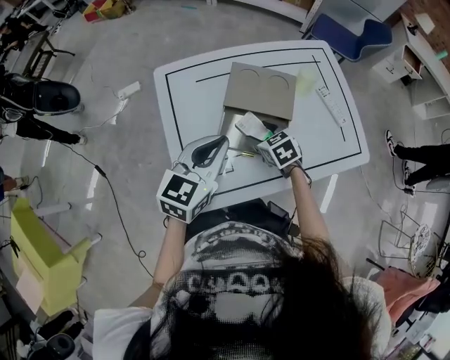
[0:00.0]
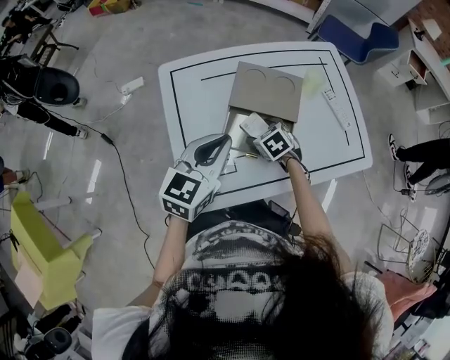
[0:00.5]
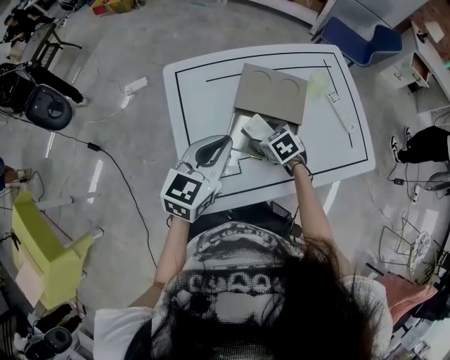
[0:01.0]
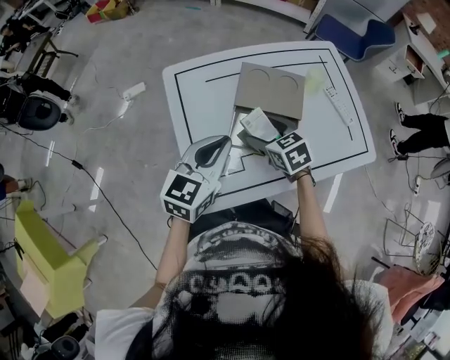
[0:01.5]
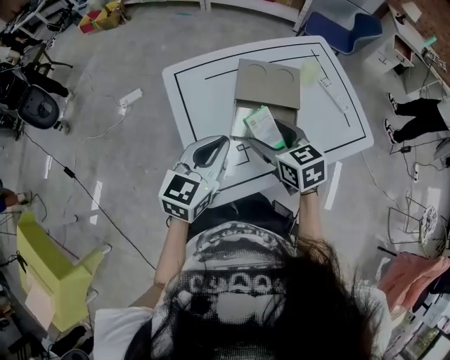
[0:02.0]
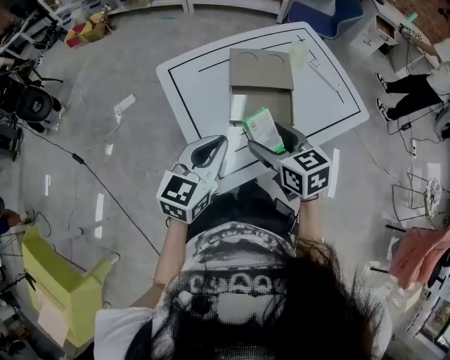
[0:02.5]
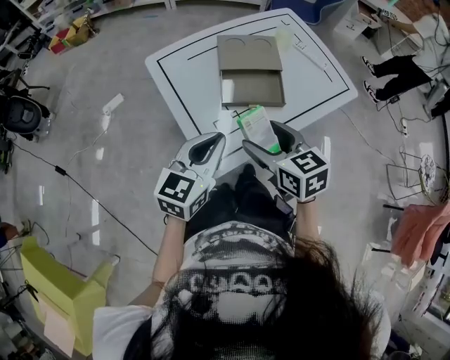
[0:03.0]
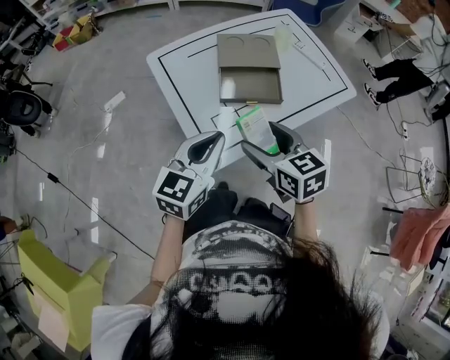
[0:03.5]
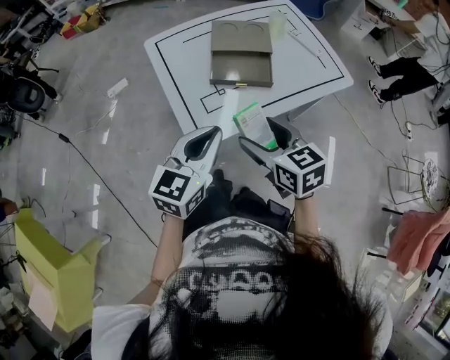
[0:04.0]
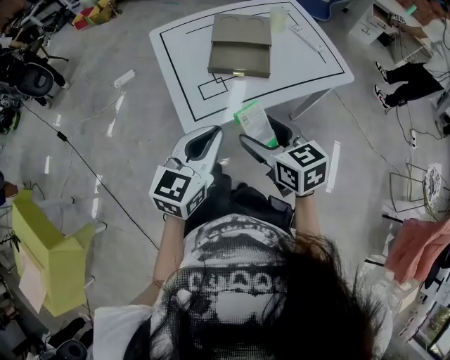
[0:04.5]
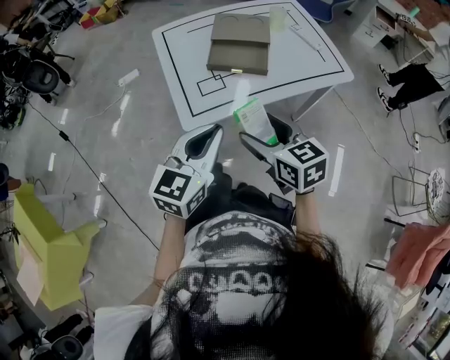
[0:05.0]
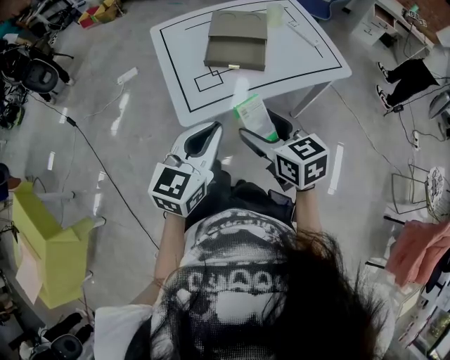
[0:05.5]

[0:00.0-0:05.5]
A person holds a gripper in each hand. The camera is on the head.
0:00.0 to 0:02.0: The left gripper is displaced to the left by about 5 cm. Meanwhile the right gripper travels upward, backward and to the left by about 15 cm, and rotates about 20 degrees.
0:02.0 to 0:03.5: Both grippers travel together backward, roughly 15 cm.
0:03.5 to 0:05.5: Both grippers travel together backward and to the right, about 20 cm.

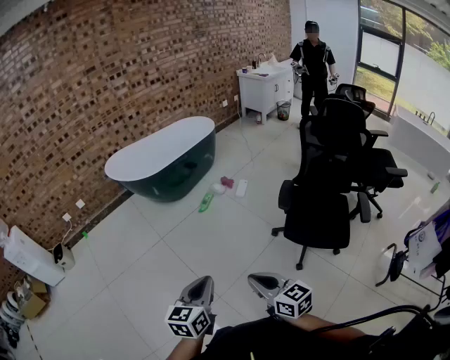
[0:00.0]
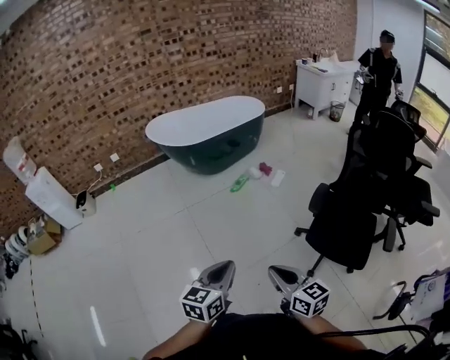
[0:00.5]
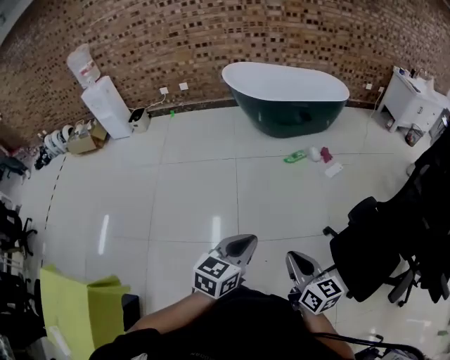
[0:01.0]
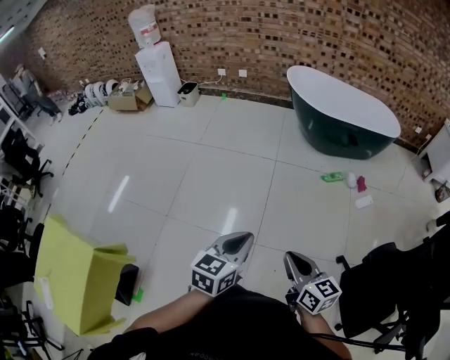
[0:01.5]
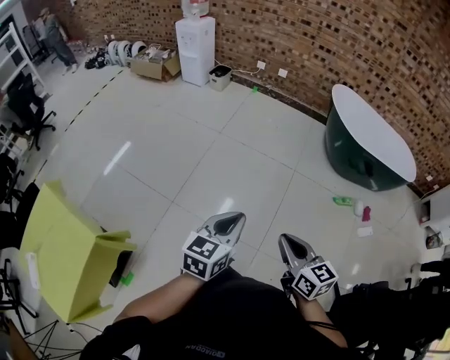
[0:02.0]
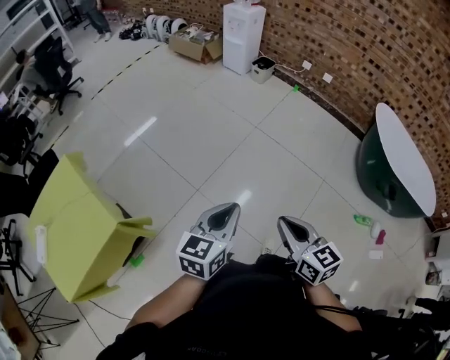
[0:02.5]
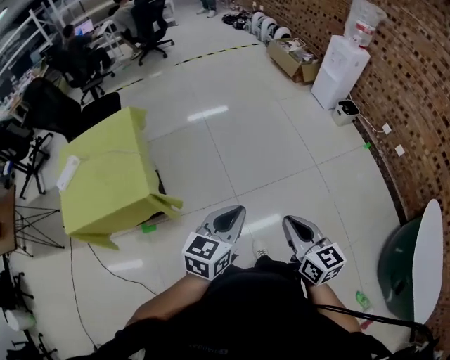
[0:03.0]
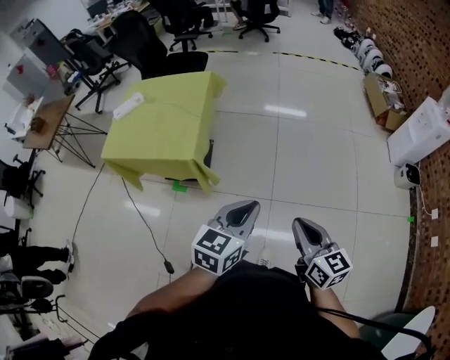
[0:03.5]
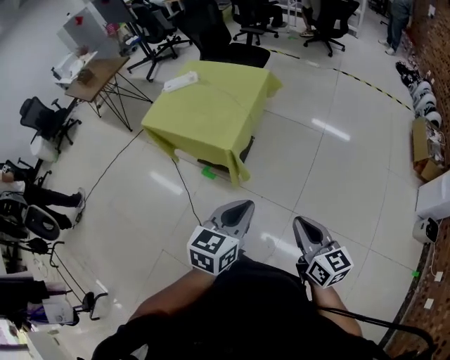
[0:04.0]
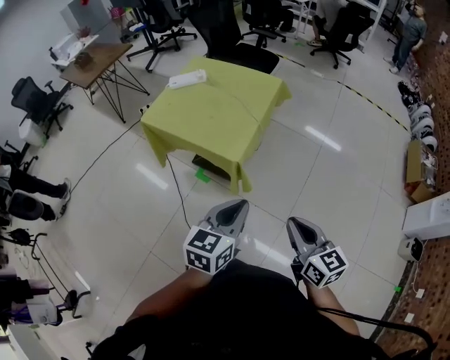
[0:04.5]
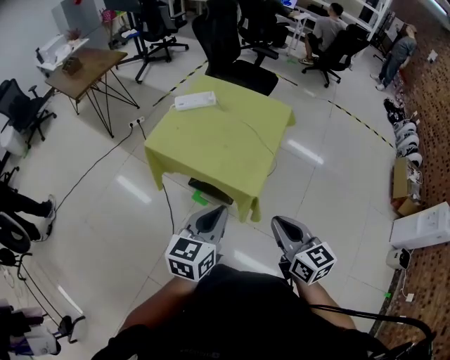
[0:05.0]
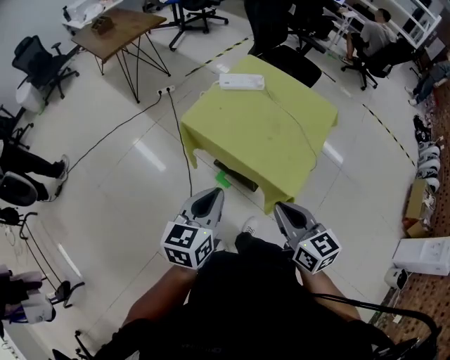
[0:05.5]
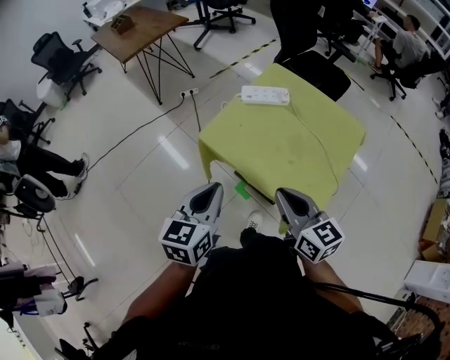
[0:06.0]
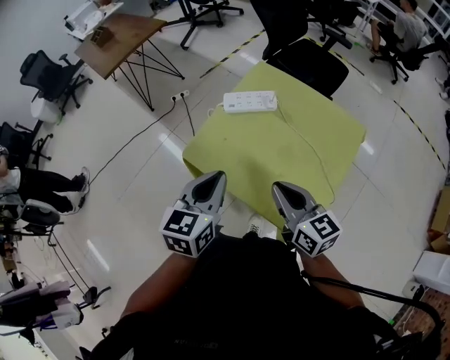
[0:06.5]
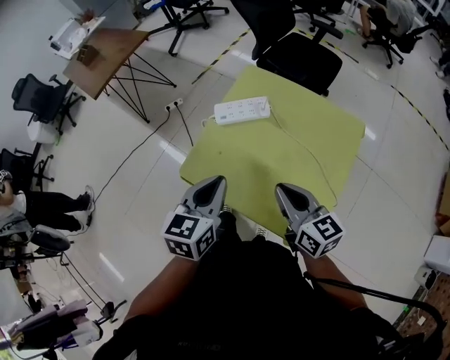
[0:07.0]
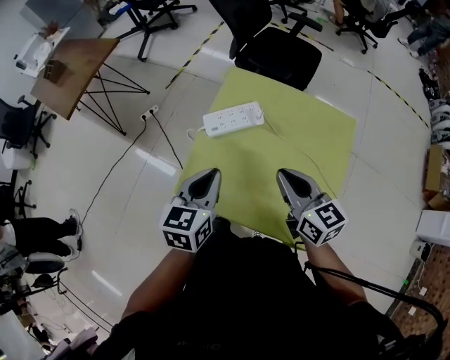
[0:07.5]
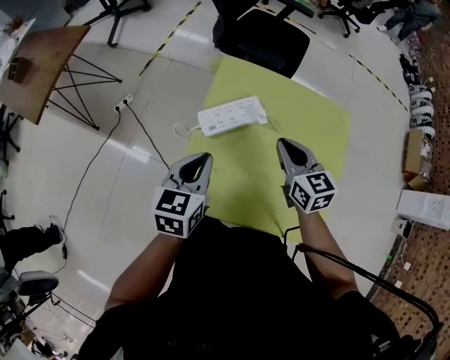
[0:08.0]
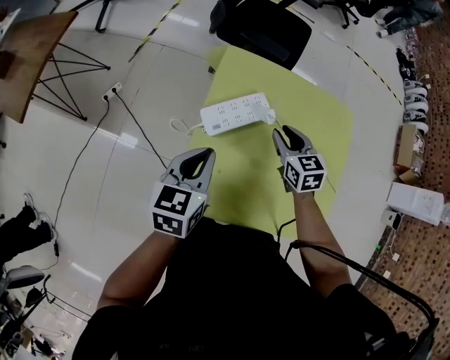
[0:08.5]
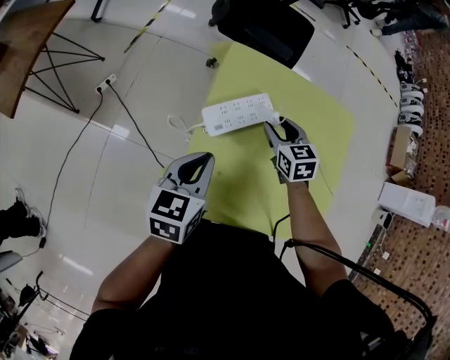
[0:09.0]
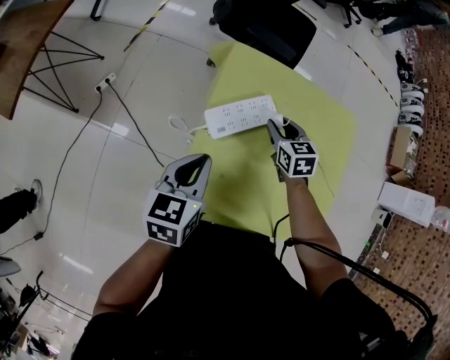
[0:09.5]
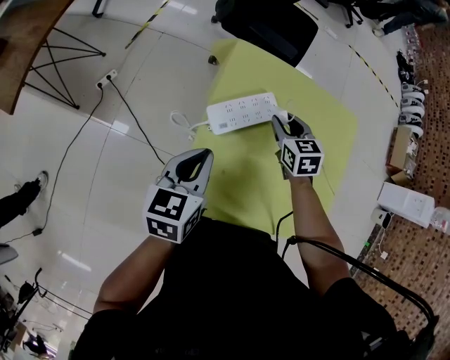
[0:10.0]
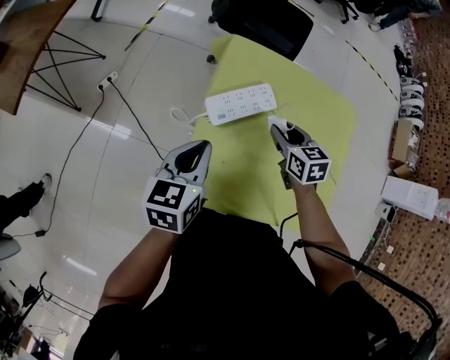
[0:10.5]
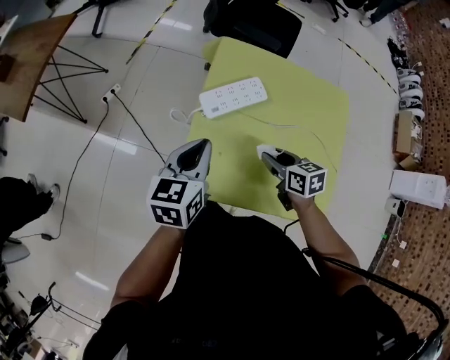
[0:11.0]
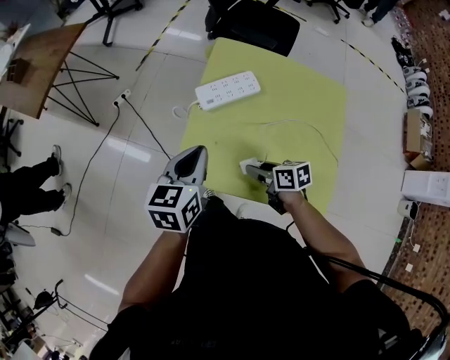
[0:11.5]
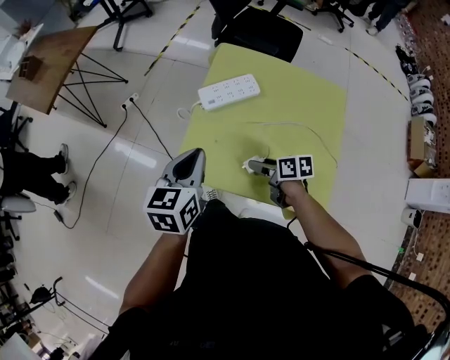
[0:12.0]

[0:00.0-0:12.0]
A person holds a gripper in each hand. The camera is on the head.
0:00.0 to 0:02.0: The right gripper ends up some 30 cm from where it was, and rotates about 50 degrees, while the left gripper shifts by about 30 cm, and swivels some 50 degrees.
0:02.0 to 0:04.0: The left gripper moves some 35 cm, and changes its angle by about 90 degrees. Meanwhile the right gripper changes place by some 50 cm, and changes its angle by roughly 90 degrees.
0:04.0 to 0:06.0: Both grippers are carried to the left and forward, some 60 cm. The left gripper changes its angle by some 30 degrees; the right gripper rotates about 20 degrees.
0:06.0 to 0:08.0: The right gripper moves roughly 35 cm, and turns by some 30 degrees. Meanwhile the left gripper moves about 35 cm, and swivels some 30 degrees.
0:08.0 to 0:10.0: The left gripper shifts by approximately 5 cm. The right gripper is displaced downward and forward by some 15 cm, turns by approximately 20 degrees, and opens its fingers.
0:10.0 to 0:12.0: The right gripper moves some 25 cm, rotates approximately 50 degrees, and opens. The left gripper shifts by roughly 15 cm.

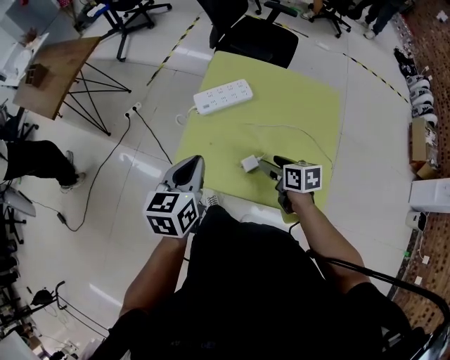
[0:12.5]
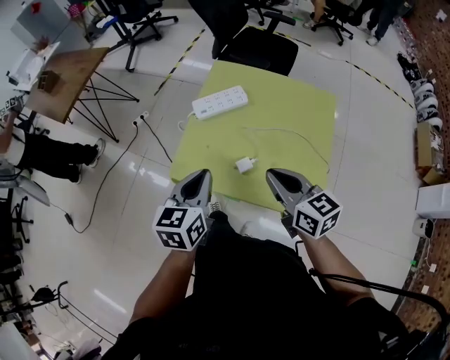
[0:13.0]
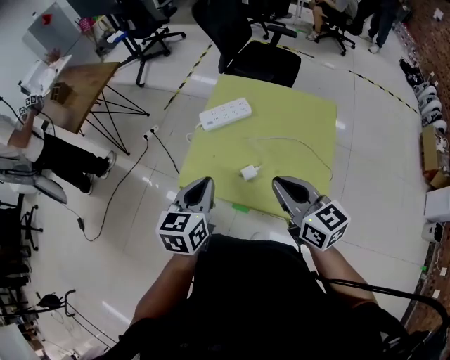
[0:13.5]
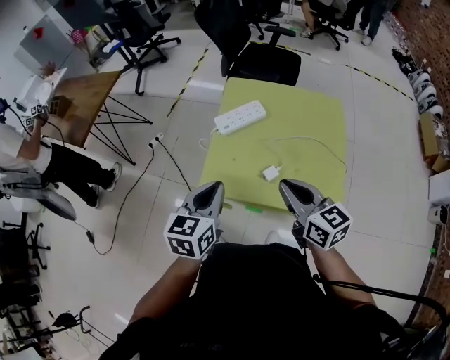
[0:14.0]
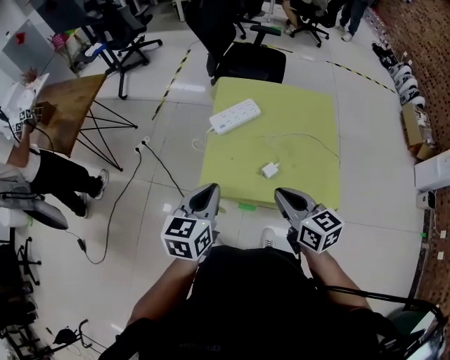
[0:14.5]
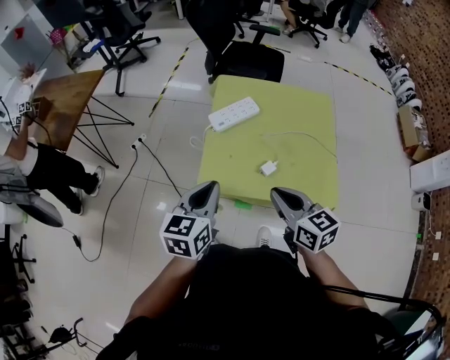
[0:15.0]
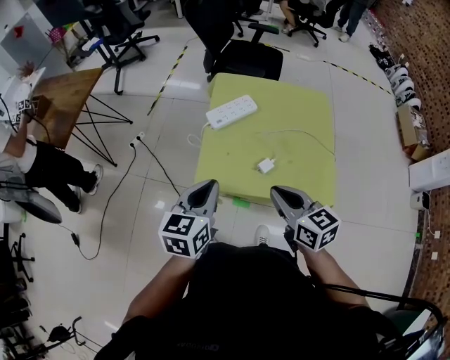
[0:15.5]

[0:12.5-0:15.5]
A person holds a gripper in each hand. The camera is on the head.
0:12.5 to 0:14.0: The left gripper shifts some 5 cm backward, while the right gripper moves upward, roughly 20 cm, swivels about 30 degrees, and closes.
0:14.0 to 0:15.5: The right gripper moves roughly 5 cm.

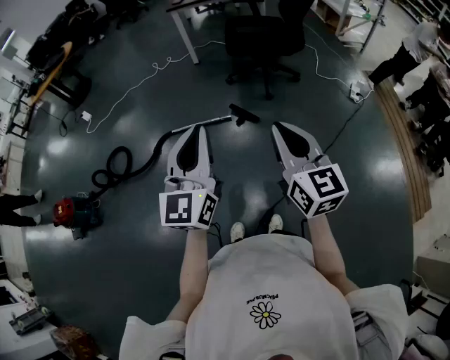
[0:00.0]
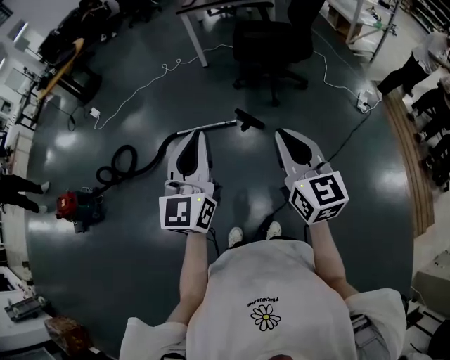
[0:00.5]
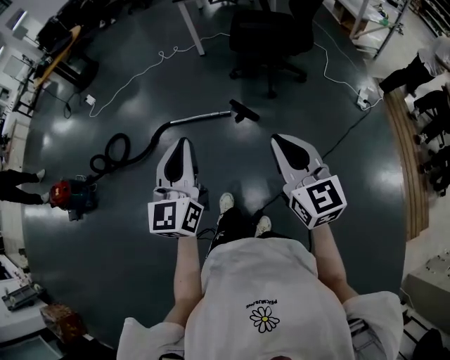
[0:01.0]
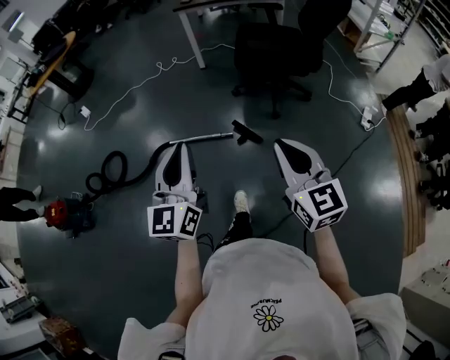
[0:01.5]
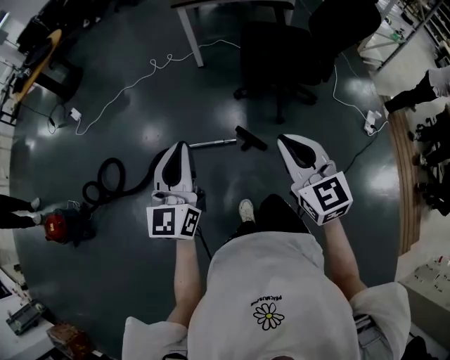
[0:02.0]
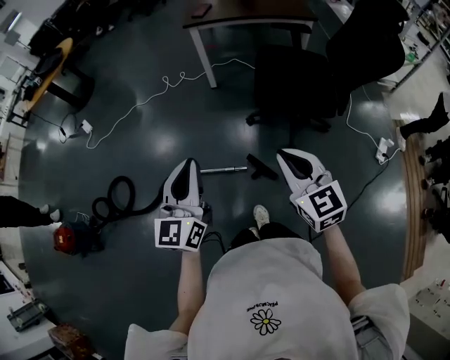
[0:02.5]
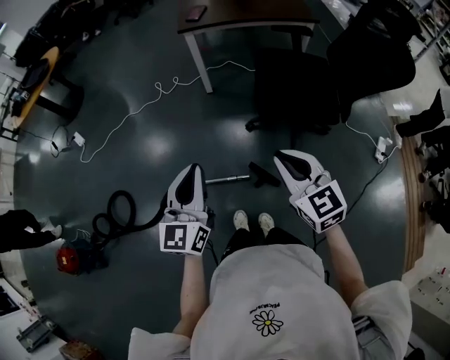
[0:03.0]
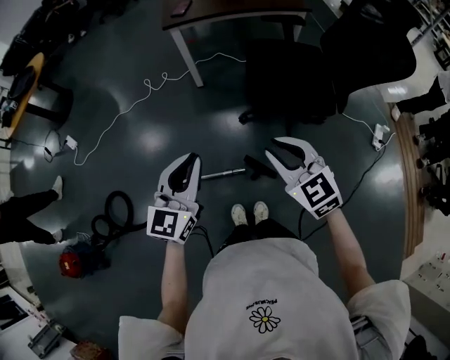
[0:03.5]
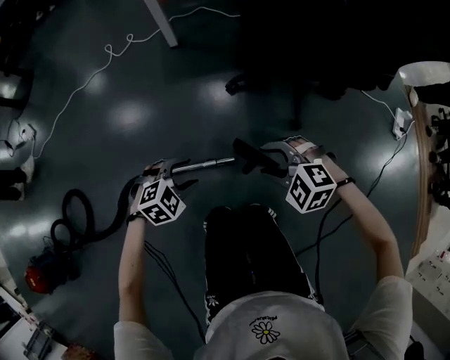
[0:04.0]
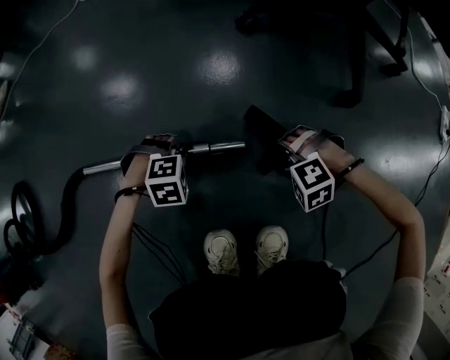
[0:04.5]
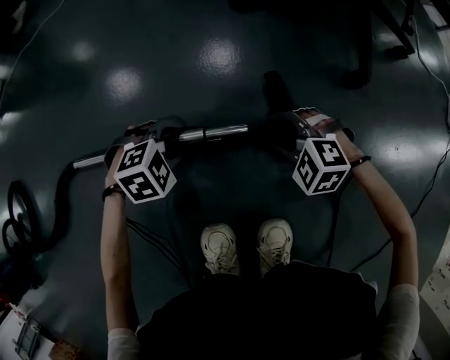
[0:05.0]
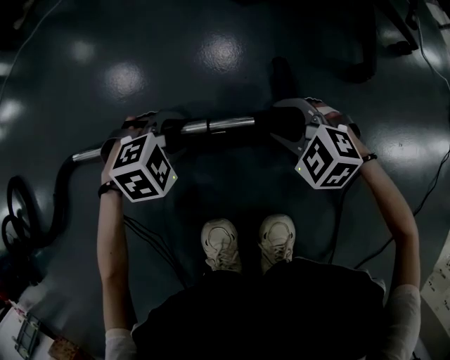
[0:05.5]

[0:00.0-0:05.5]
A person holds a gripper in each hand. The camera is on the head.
0:00.0 to 0:02.0: The grippers both shift forward by some 35 cm. The right gripper changes its angle by some 20 degrees.
0:02.0 to 0:03.5: Both grippers travel together forward, approximately 25 cm. The left gripper changes its angle by approximately 20 degrees.
0:03.5 to 0:05.5: The two grippers go approximately 90 cm downward. The right gripper points its fingers roughly 30 degrees further downward, and opens up. The left gripper points its fingers some 60 degrees further downward, and opens.
